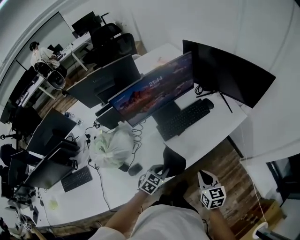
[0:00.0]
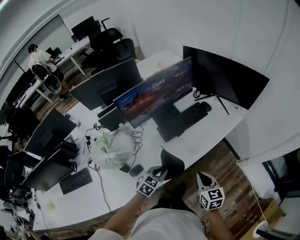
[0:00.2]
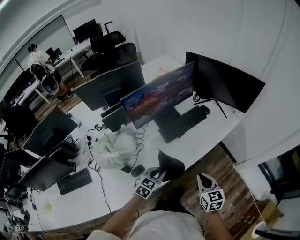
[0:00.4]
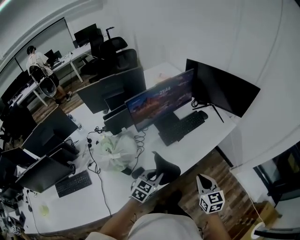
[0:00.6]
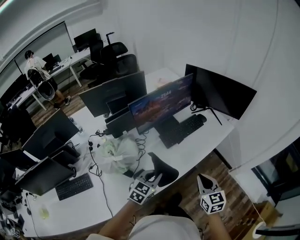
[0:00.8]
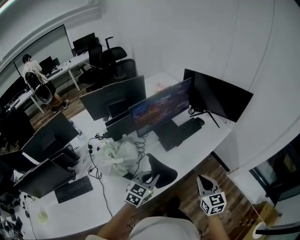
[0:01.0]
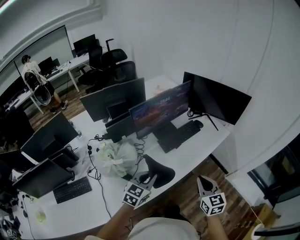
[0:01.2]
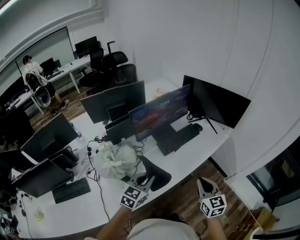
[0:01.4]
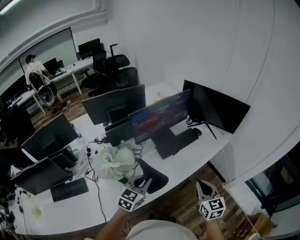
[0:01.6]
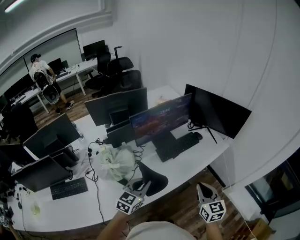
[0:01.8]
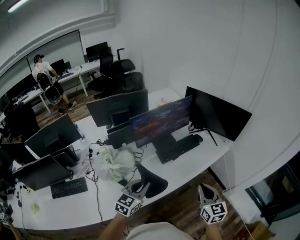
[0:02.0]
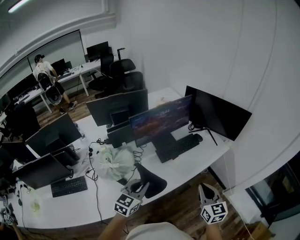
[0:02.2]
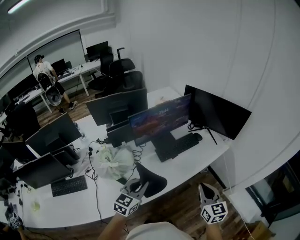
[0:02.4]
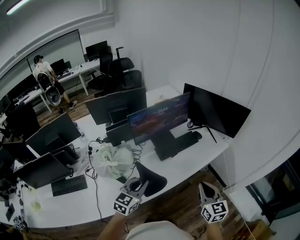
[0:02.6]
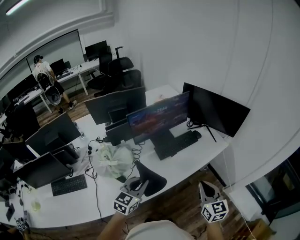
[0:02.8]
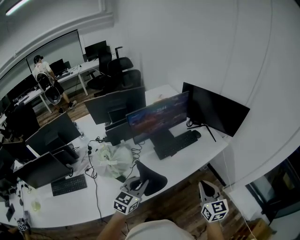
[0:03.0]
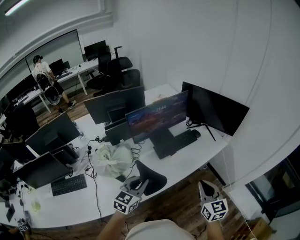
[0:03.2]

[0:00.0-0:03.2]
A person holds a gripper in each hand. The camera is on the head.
0:00.0 to 0:01.6: The right gripper heads upward and backward, covering roughly 15 cm. The left gripper shifts roughly 25 cm upward, to the left and backward, and turns by some 30 degrees.
0:01.6 to 0:03.2: The right gripper moves to the right, some 5 cm; the left gripper ends up approximately 5 cm from where it was.

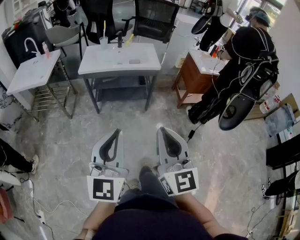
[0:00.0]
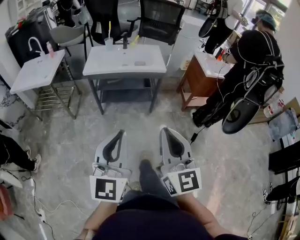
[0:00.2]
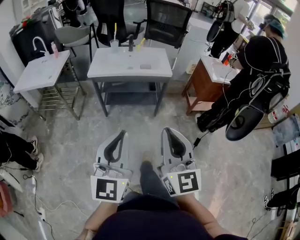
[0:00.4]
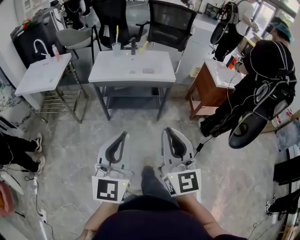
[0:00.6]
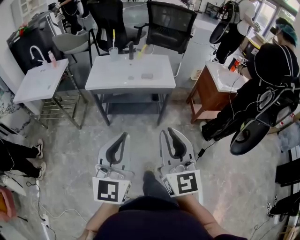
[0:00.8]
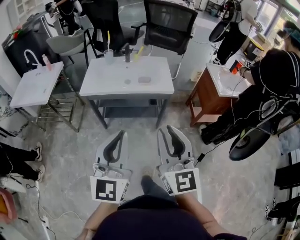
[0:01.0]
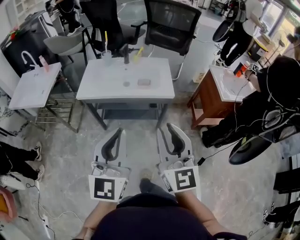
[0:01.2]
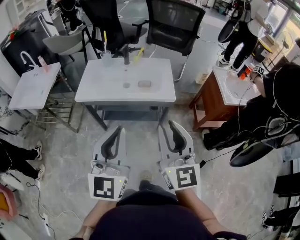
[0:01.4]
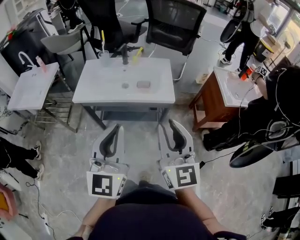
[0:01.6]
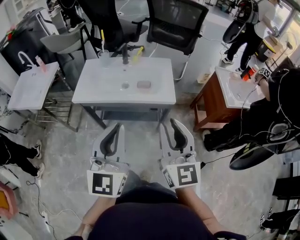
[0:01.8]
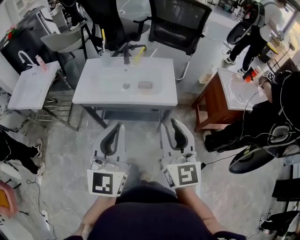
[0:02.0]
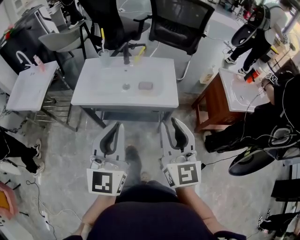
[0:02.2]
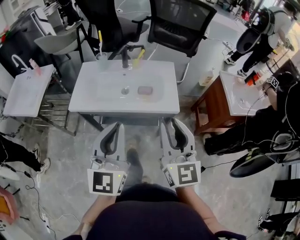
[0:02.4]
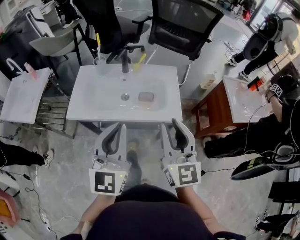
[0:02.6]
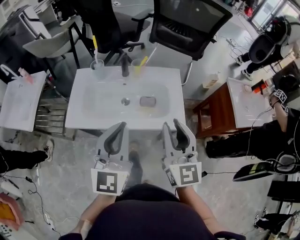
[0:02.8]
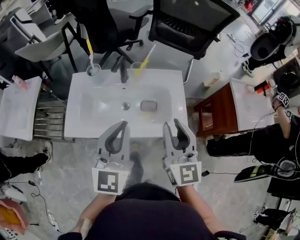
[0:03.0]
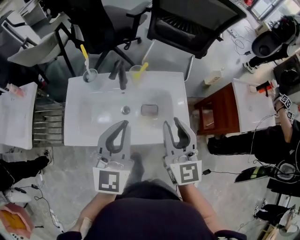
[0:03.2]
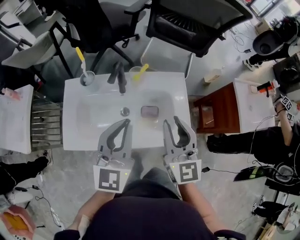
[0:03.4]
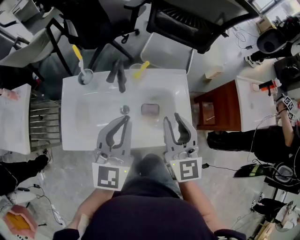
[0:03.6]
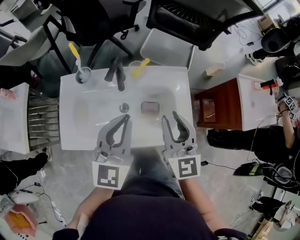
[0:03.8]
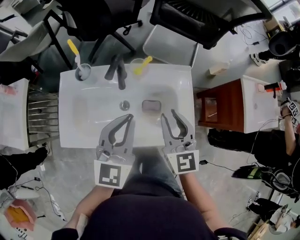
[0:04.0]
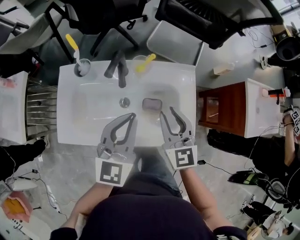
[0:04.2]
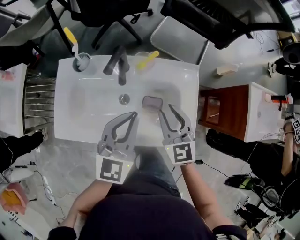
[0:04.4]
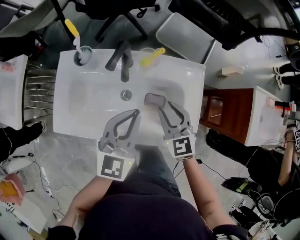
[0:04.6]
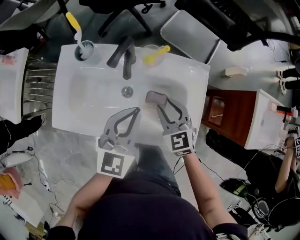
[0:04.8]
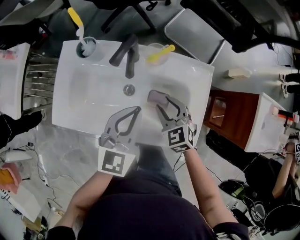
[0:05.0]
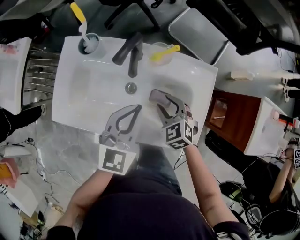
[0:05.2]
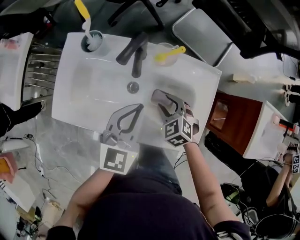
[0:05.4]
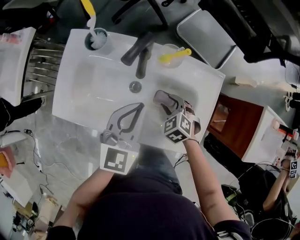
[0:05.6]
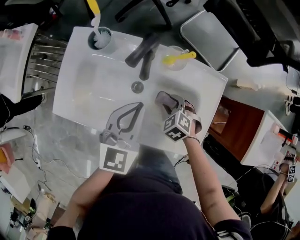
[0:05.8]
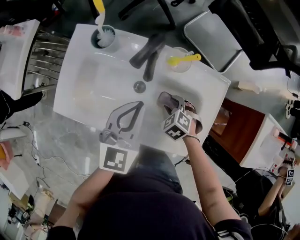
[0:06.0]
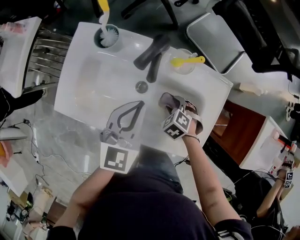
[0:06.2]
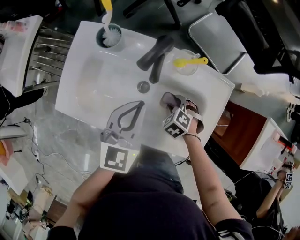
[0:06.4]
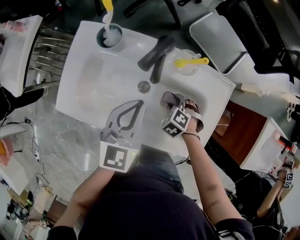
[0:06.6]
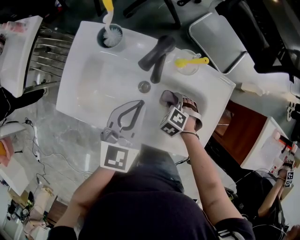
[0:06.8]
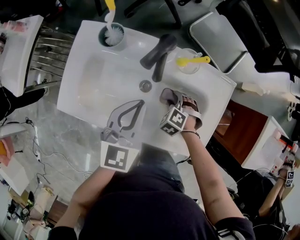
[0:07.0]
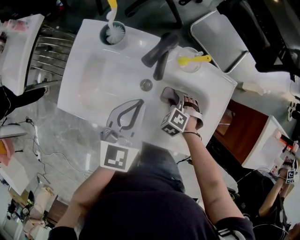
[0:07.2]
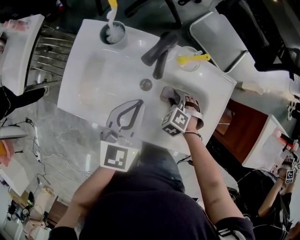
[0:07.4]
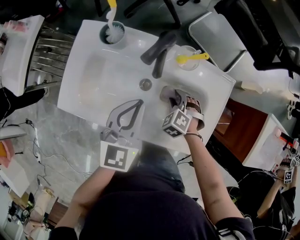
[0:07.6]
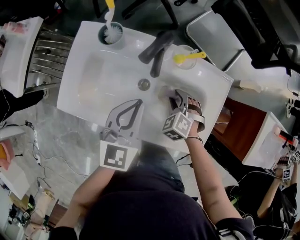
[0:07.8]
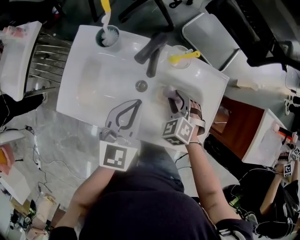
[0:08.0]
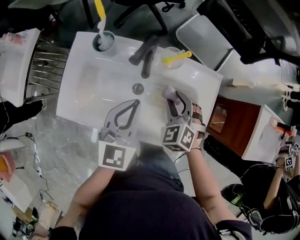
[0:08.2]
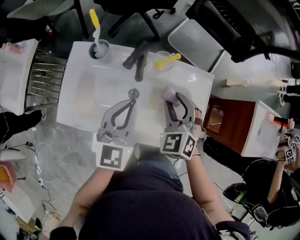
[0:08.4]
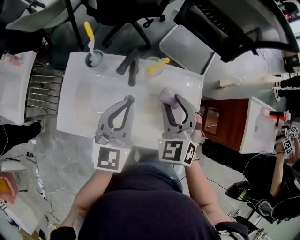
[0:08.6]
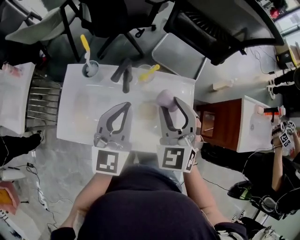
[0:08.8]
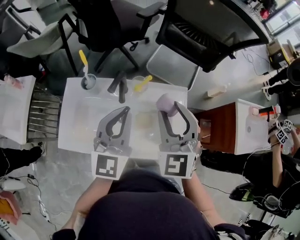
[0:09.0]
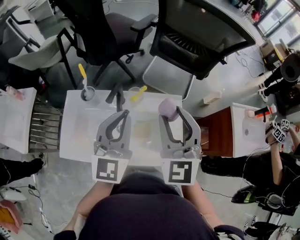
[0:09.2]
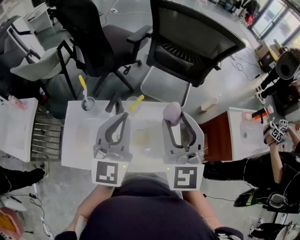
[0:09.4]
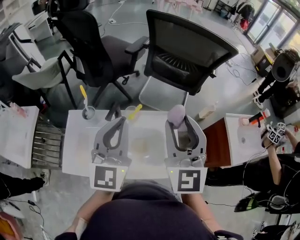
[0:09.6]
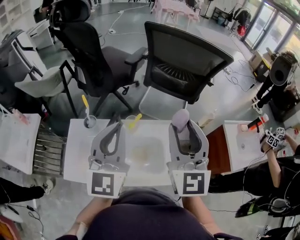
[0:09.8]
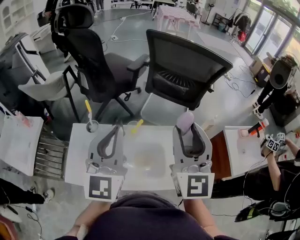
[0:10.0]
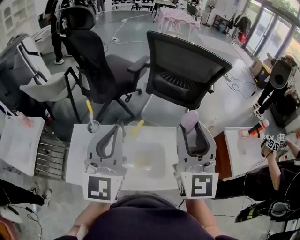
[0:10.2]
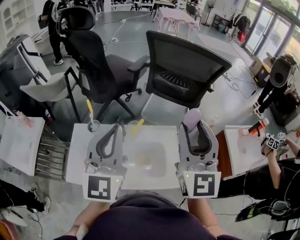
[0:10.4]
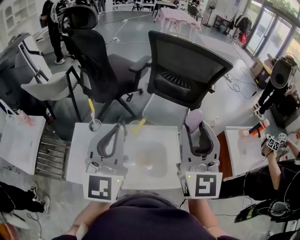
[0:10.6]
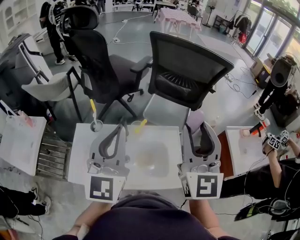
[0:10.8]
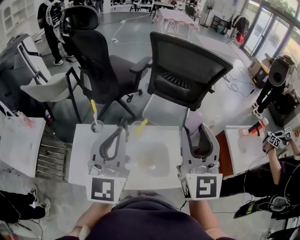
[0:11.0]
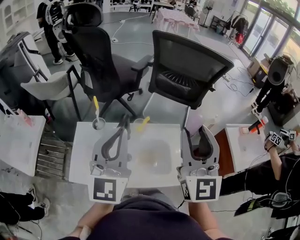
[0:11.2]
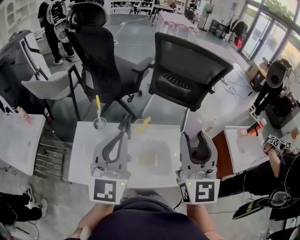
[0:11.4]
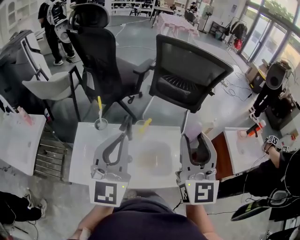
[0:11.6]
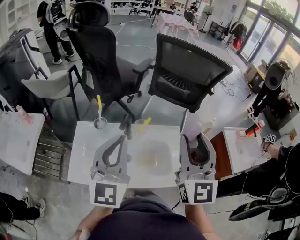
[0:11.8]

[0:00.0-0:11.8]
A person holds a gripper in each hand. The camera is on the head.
0:00.0 to 0:01.4: Both grippers move forward, some 35 cm. The right gripper opens its fingers.
0:01.4 to 0:03.0: Both grippers travel together forward, roughly 35 cm.
0:03.0 to 0:04.4: The right gripper shifts roughly 20 cm downward and forward, and turns by about 30 degrees. The left gripper travels forward and downward by some 15 cm.
0:04.4 to 0:06.0: The left gripper travels downward by some 5 cm, while the right gripper shifts approximately 20 cm downward, and points its fingers roughly 50 degrees further downward.
0:06.0 to 0:07.4: There are only small adjustments of the grippers.
0:07.4 to 0:08.8: The left gripper goes roughly 10 cm upward. Meanwhile the right gripper goes approximately 35 cm upward, and tilts its fingers roughly 50 degrees upward.
0:08.8 to 0:10.4: The left gripper goes some 20 cm upward; the right gripper is displaced upward and to the right by roughly 25 cm, and angles its fingers upward, by some 30 degrees.
0:10.4 to 0:11.8: The left gripper shifts by roughly 10 cm. The right gripper is displaced backward by approximately 5 cm.

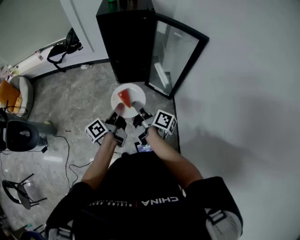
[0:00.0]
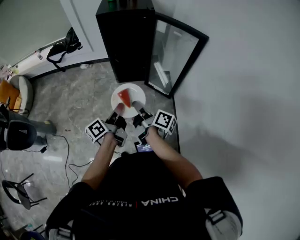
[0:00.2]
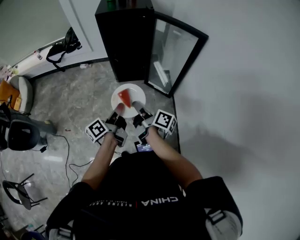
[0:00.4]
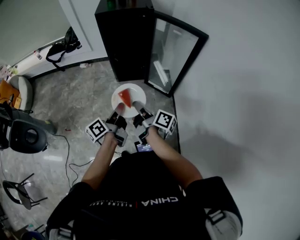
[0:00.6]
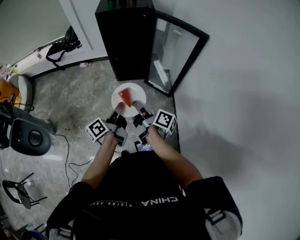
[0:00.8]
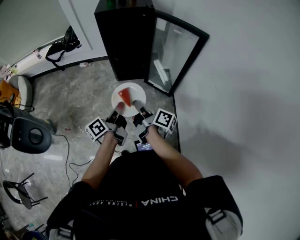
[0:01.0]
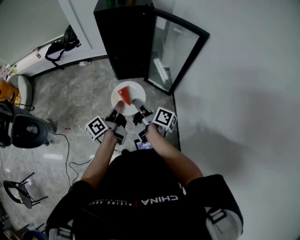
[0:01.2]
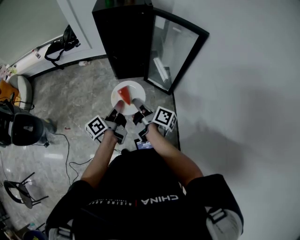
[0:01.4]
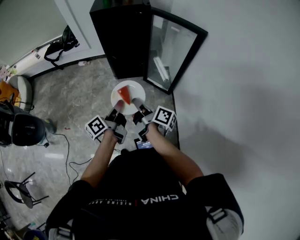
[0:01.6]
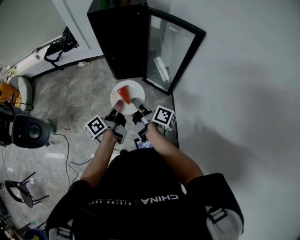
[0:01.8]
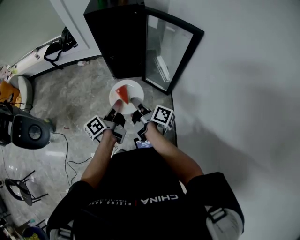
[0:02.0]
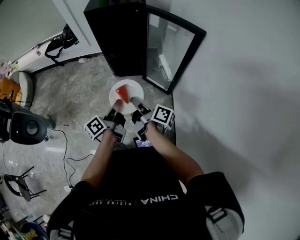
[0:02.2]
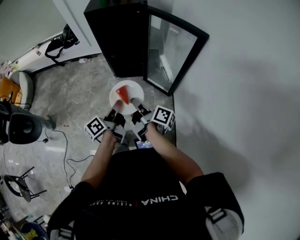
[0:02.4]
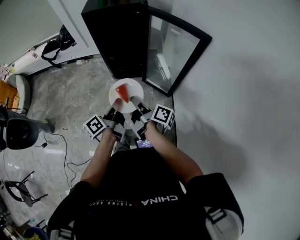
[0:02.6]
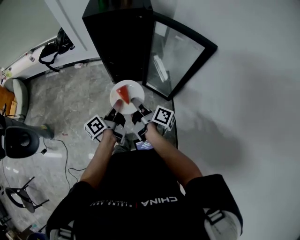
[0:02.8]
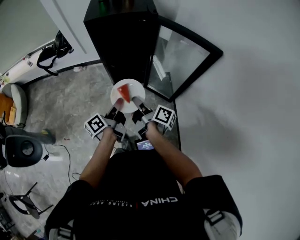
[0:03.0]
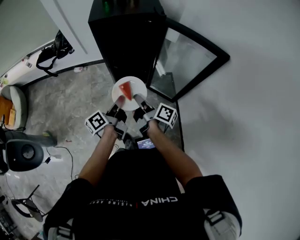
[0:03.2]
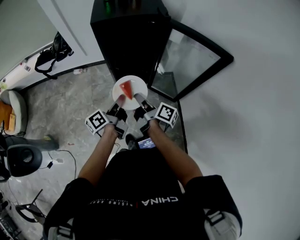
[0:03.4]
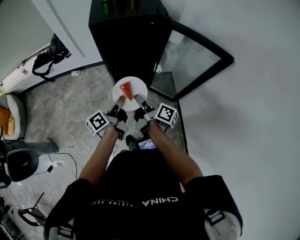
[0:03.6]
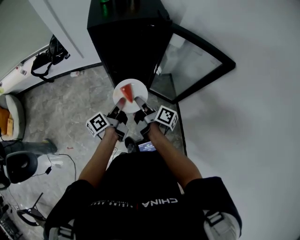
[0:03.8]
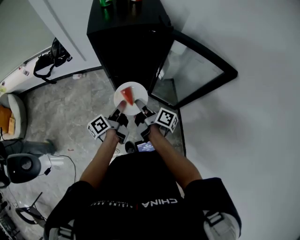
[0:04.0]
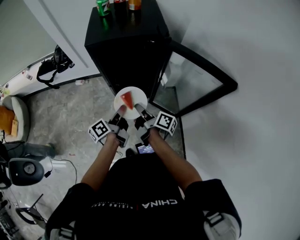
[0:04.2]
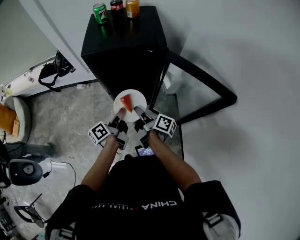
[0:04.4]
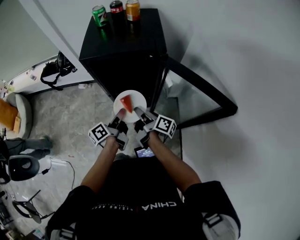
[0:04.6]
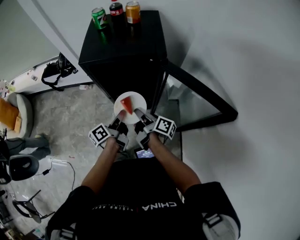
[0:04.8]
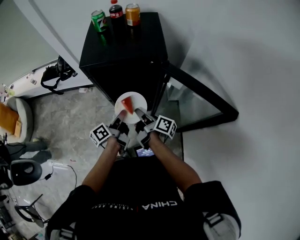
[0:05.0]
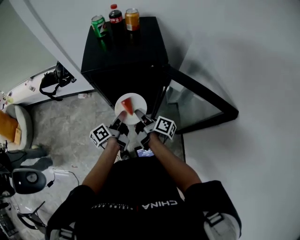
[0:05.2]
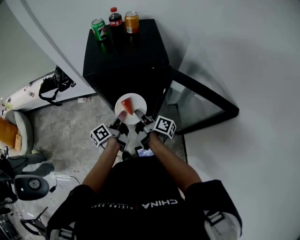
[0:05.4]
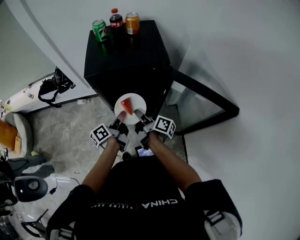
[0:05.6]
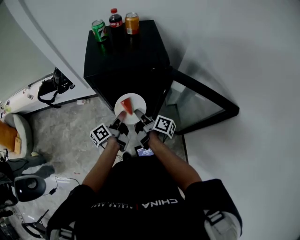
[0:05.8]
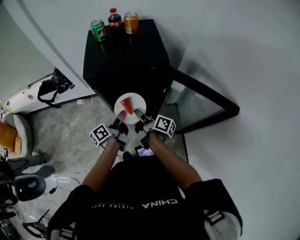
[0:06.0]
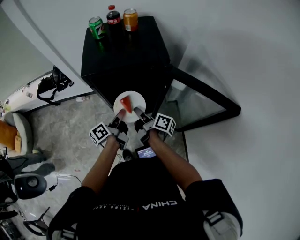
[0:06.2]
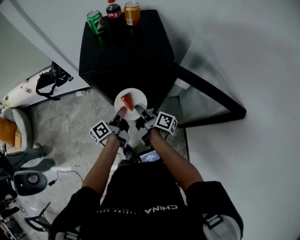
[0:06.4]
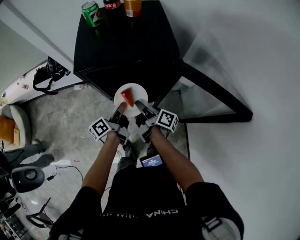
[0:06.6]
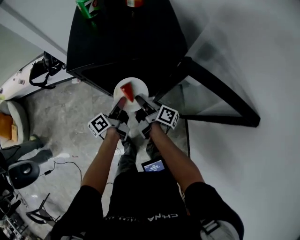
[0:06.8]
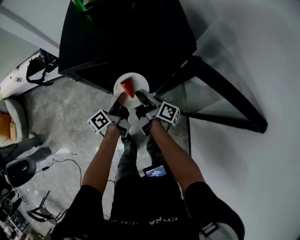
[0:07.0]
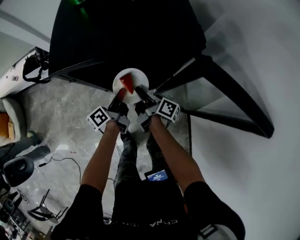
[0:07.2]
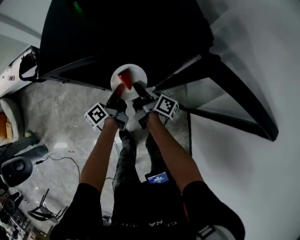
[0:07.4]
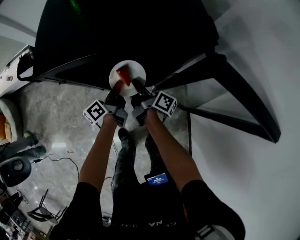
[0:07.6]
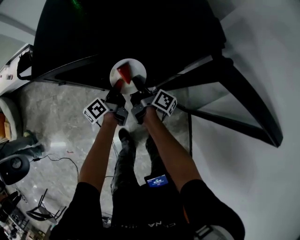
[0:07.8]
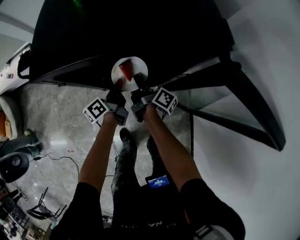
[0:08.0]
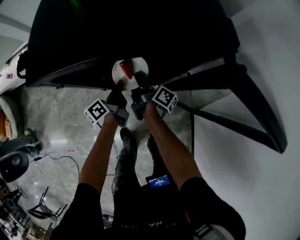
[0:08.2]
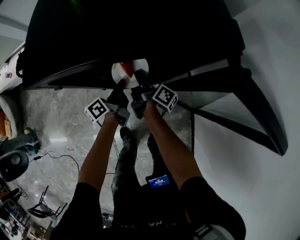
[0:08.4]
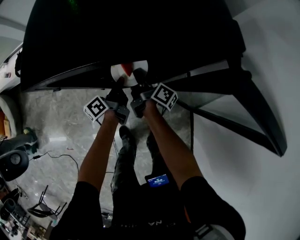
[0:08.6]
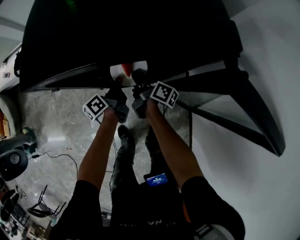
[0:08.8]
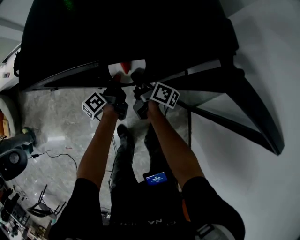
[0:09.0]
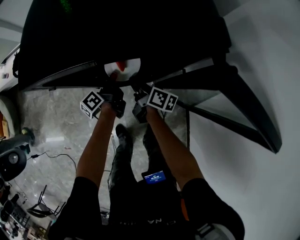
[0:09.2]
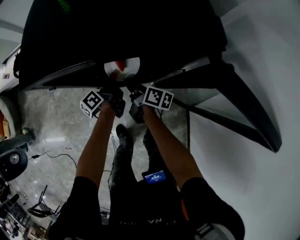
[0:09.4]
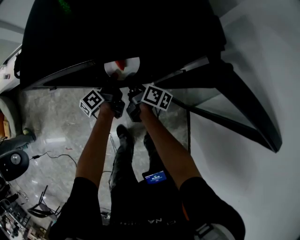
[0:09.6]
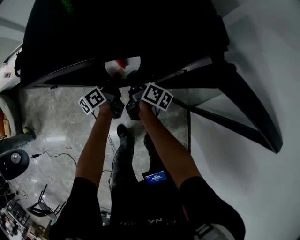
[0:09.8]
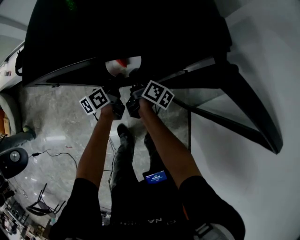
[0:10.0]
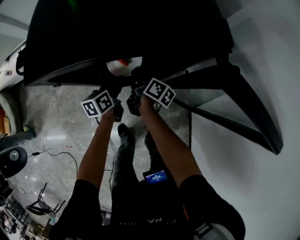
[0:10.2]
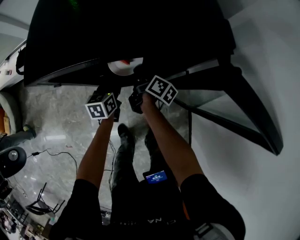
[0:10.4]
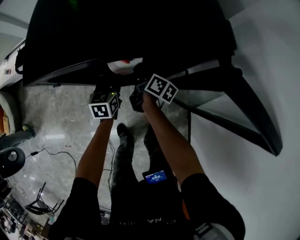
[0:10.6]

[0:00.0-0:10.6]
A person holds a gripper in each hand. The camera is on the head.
0:00.0 to 0:01.6: The grippers move only a little.
0:01.6 to 0:03.0: Both grippers travel together downward, some 5 cm.
0:03.0 to 0:07.6: The grippers stay close to where they were, moving slightly.
0:07.6 to 0:09.0: The left gripper moves downward, about 5 cm, while the right gripper ends up approximately 5 cm from where it was.
0:09.0 to 0:10.6: The left gripper rolls clockwise, seen from behind, by some 60 degrees.
